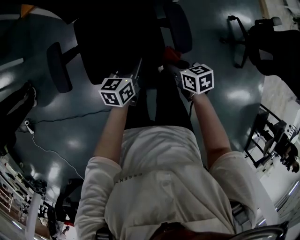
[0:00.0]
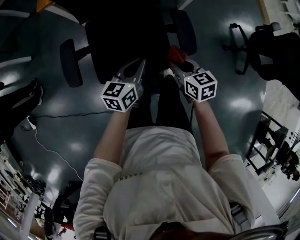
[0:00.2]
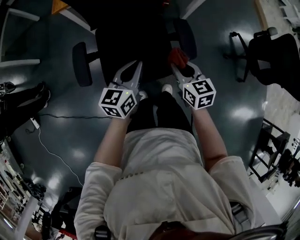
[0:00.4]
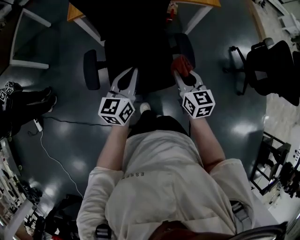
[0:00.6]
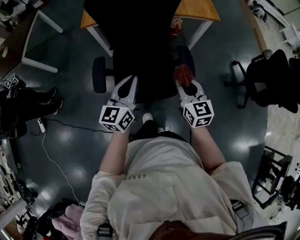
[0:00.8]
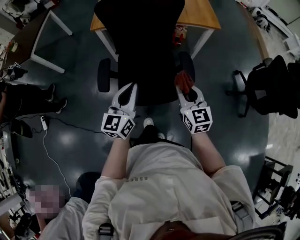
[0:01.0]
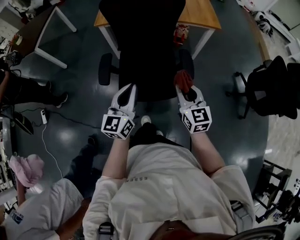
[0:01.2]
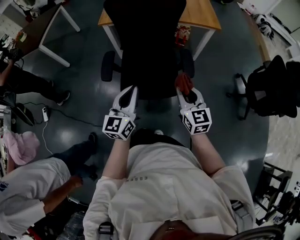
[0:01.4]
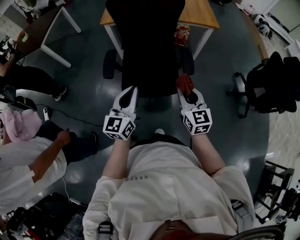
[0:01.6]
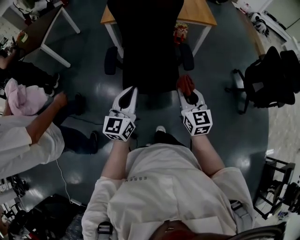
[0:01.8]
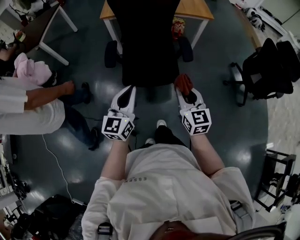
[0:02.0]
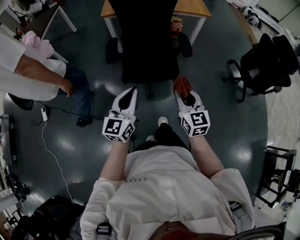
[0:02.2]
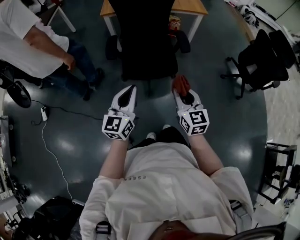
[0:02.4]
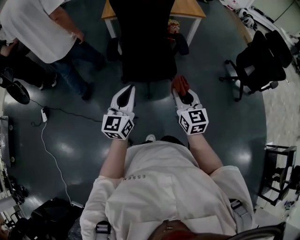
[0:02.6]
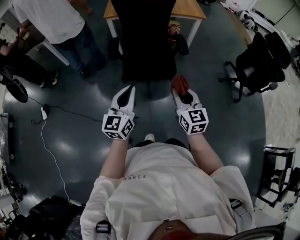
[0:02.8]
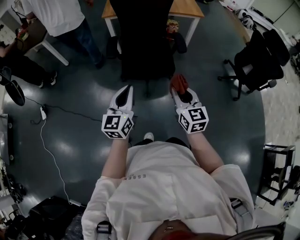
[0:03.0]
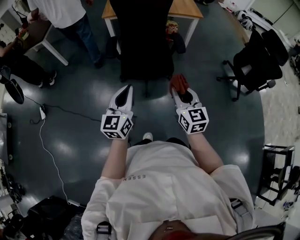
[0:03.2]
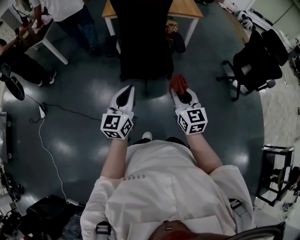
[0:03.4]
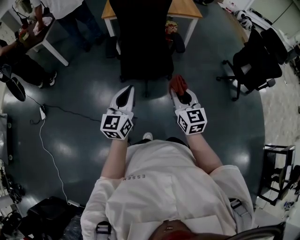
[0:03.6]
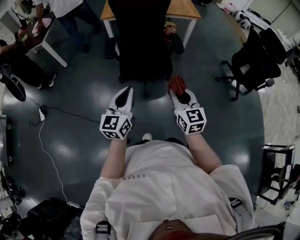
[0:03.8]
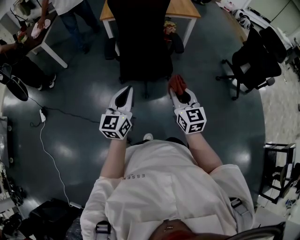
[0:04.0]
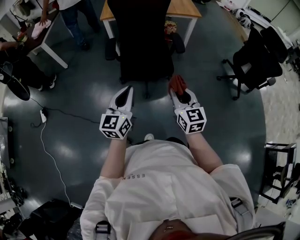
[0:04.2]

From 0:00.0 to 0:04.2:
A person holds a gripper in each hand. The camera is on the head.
From 0:00.0 to 0:01.4: The left gripper shifts roughly 35 cm upward, backward and to the left, and rotates about 40 degrees; the right gripper travels upward by some 25 cm, and tilts its fingers roughly 30 degrees upward.
From 0:01.4 to 0:02.8: Both grippers travel together backward, about 25 cm.
From 0:02.8 to 0:04.2: There are only small adjustments of the grippers.

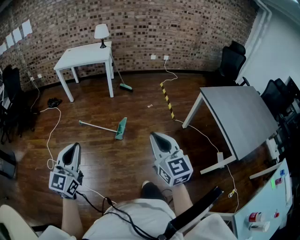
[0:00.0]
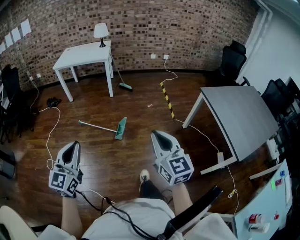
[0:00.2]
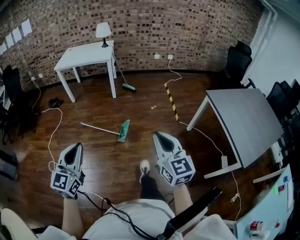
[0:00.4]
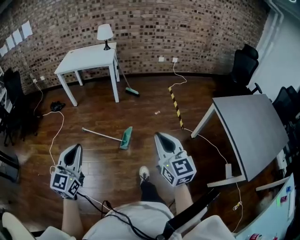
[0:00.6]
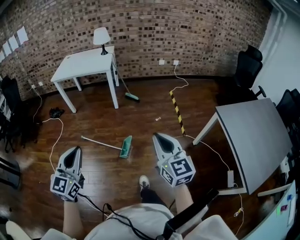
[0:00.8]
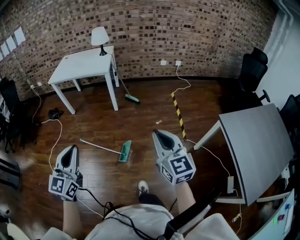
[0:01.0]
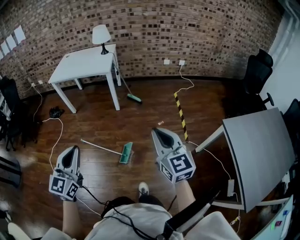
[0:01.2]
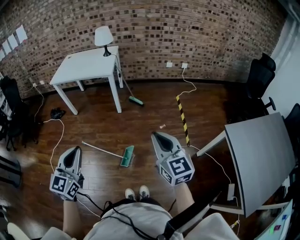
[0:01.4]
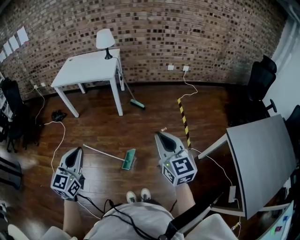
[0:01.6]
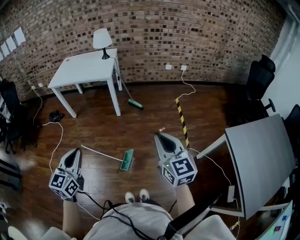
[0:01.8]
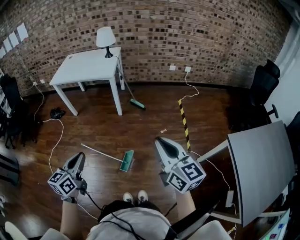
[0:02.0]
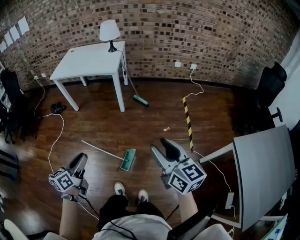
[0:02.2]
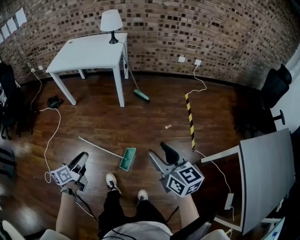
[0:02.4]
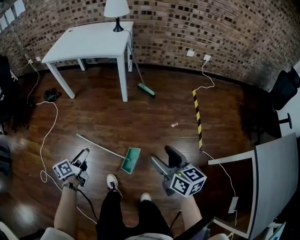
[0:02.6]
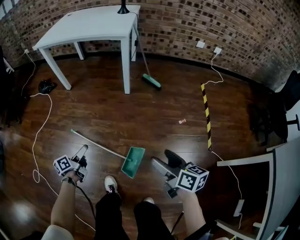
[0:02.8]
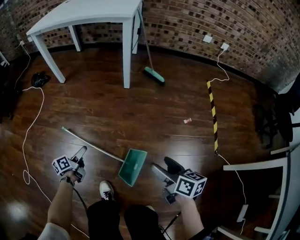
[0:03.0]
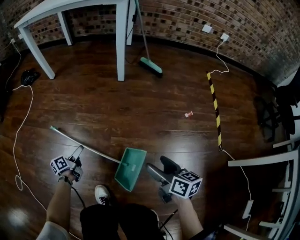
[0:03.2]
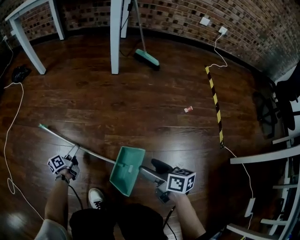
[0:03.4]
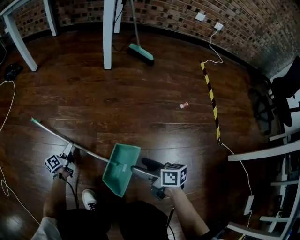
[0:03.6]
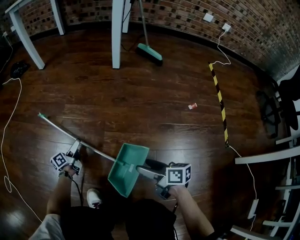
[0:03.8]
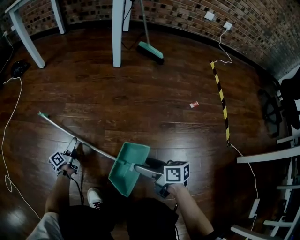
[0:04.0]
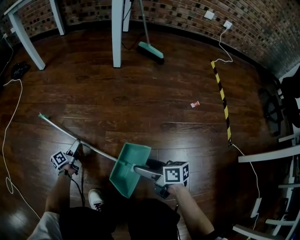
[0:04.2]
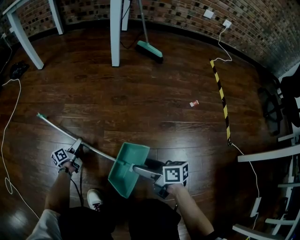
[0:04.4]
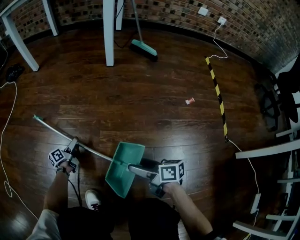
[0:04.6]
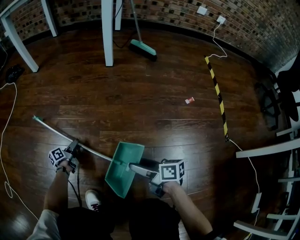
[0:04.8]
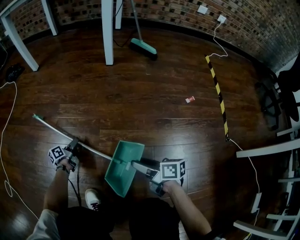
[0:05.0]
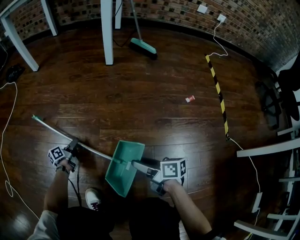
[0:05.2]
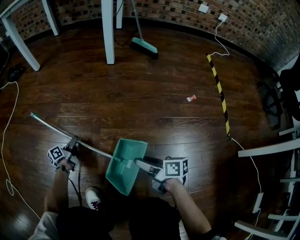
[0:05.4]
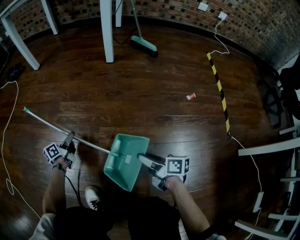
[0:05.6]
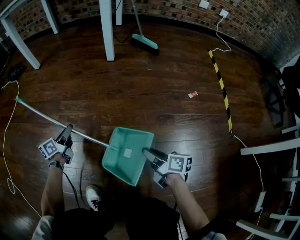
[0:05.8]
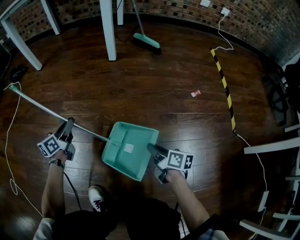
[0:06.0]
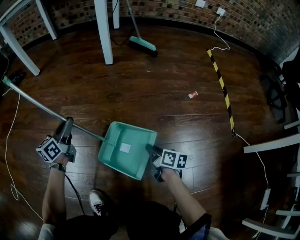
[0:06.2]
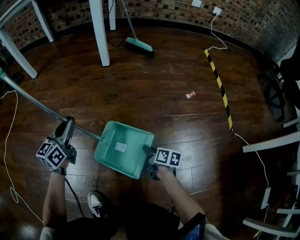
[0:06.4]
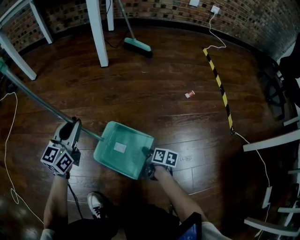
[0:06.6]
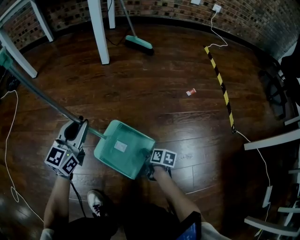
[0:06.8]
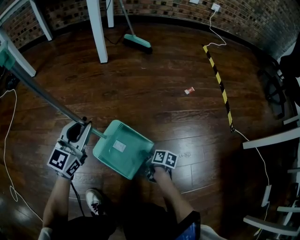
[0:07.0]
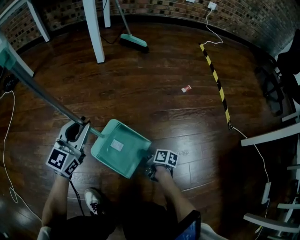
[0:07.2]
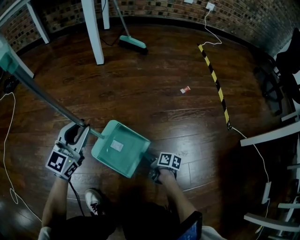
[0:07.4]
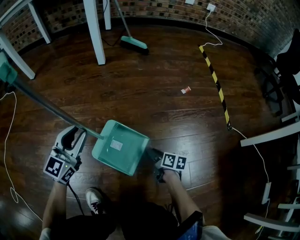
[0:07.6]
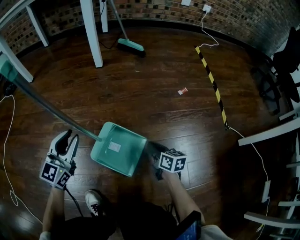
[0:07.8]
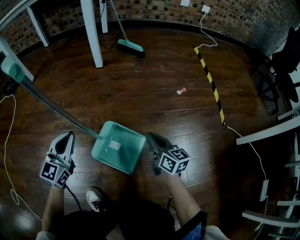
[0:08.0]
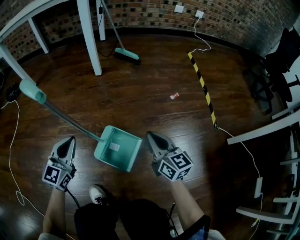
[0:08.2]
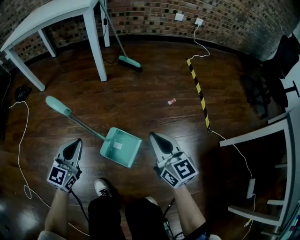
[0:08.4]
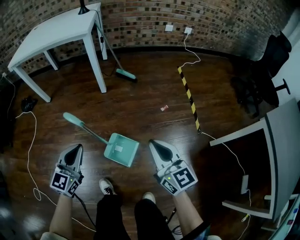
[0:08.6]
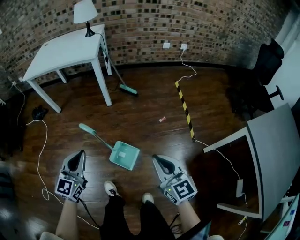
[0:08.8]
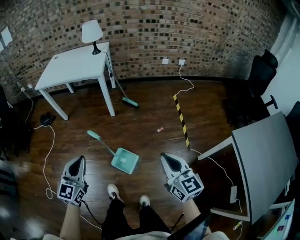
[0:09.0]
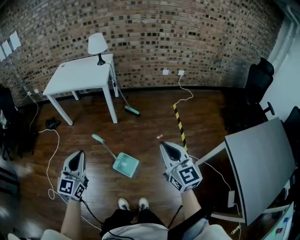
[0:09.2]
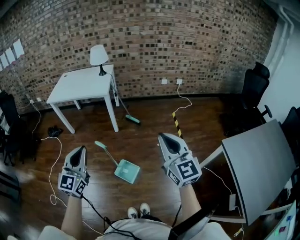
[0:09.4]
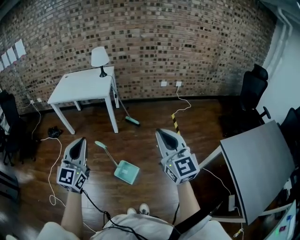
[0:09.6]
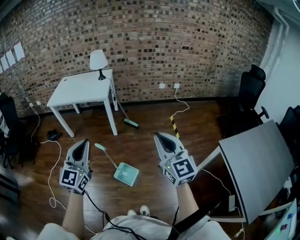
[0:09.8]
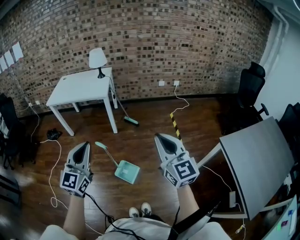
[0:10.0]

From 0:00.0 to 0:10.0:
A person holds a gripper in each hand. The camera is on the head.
From 0:00.0 to 0:01.4: The two grippers travel together, forward, some 40 cm.
From 0:01.4 to 0:02.8: The grippers both shift downward and forward by roughly 60 cm. The right gripper twists about 40 degrees clockwise, seen from behind, and opens its fingers; the left gripper twists some 70 degrees counterclockwise, seen from behind, and opens up.
From 0:02.8 to 0:04.2: The grippers both shift downward by about 50 cm. The right gripper changes its angle by about 20 degrees.
From 0:04.2 to 0:05.8: The left gripper shifts roughly 10 cm upward and to the right, and closes its fingers. Meanwhile the right gripper goes about 5 cm to the right, and closes its fingers.
From 0:05.8 to 0:07.2: The right gripper heads downward, covering roughly 20 cm, and turns by roughly 30 degrees; the left gripper heads to the right and upward, covering some 25 cm, and rotates around the line of its fingers by about 60 degrees, clockwise from behind.
From 0:07.2 to 0:08.6: The left gripper moves upward, approximately 35 cm, while the right gripper shifts about 70 cm upward, and rotates around the line of its fingers by roughly 60 degrees, counterclockwise from behind.
From 0:08.6 to 0:10.0: The two grippers go some 50 cm upward. The left gripper changes its angle by about 20 degrees.

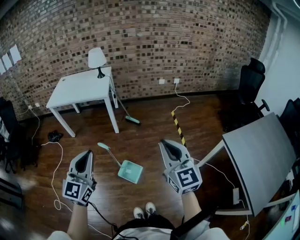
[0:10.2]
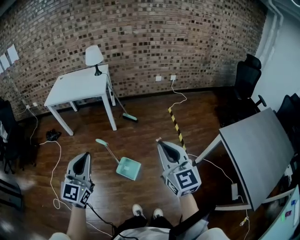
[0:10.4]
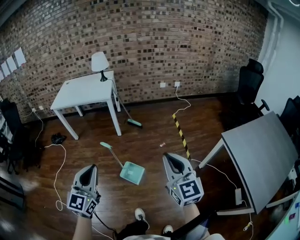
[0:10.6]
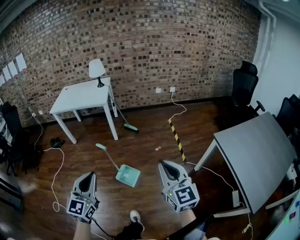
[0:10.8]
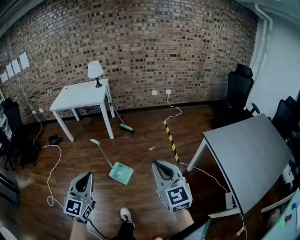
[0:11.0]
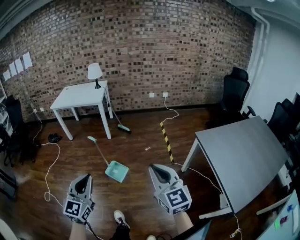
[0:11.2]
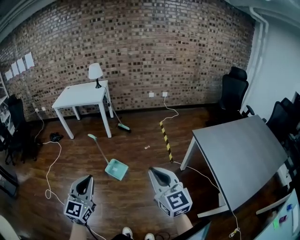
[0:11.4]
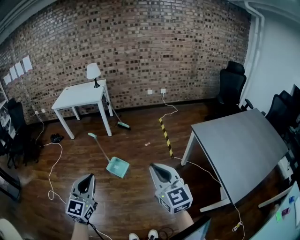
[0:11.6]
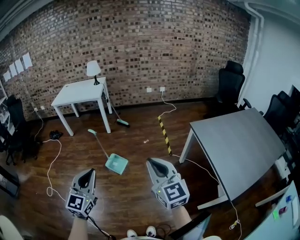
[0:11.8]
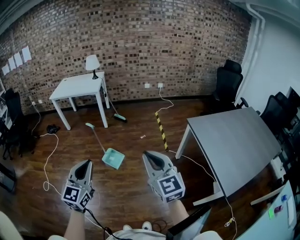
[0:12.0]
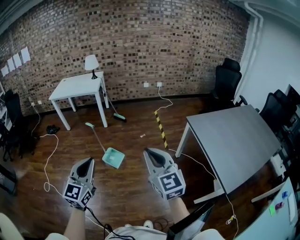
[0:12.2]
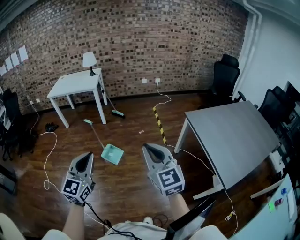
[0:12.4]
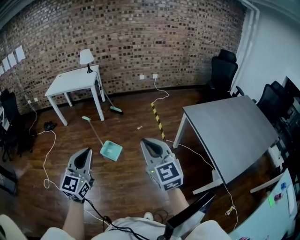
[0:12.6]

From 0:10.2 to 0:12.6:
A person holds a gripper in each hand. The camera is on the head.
From 0:10.2 to 0:11.4: Both grippers travel together backward and to the right, some 35 cm.
From 0:11.4 to 0:12.6: The grippers make only small movements.

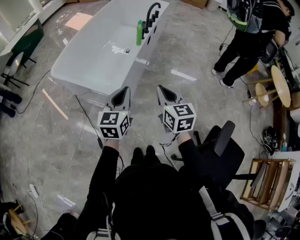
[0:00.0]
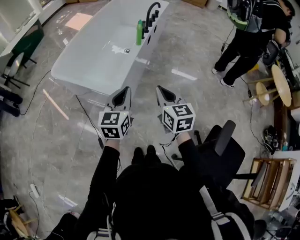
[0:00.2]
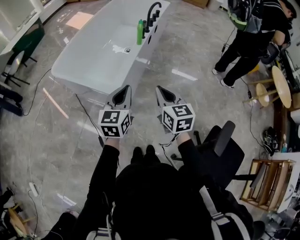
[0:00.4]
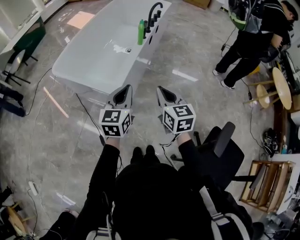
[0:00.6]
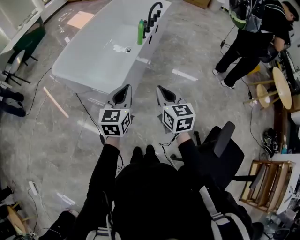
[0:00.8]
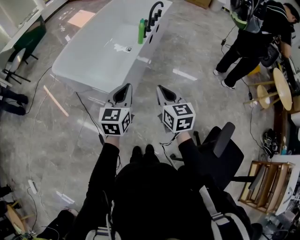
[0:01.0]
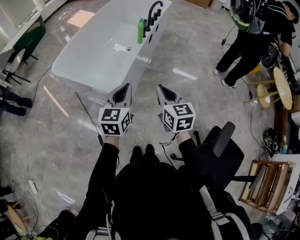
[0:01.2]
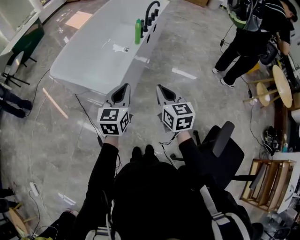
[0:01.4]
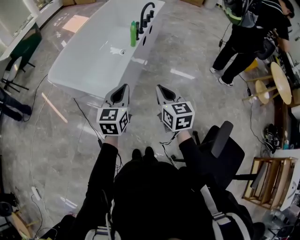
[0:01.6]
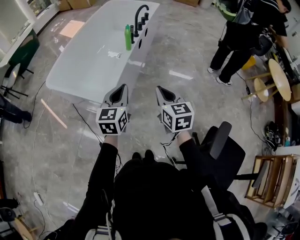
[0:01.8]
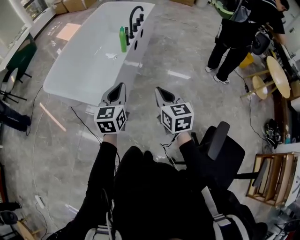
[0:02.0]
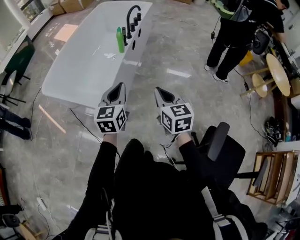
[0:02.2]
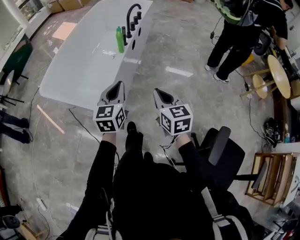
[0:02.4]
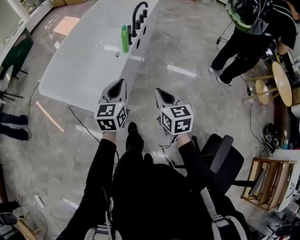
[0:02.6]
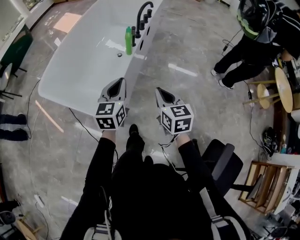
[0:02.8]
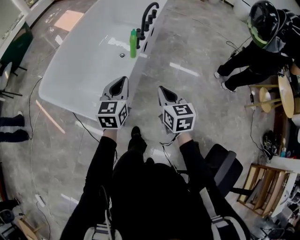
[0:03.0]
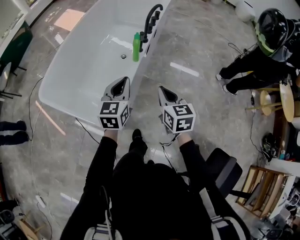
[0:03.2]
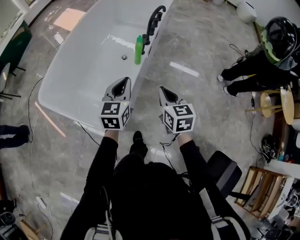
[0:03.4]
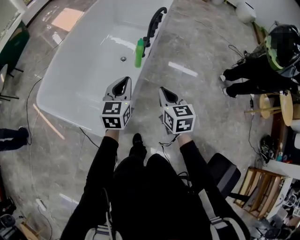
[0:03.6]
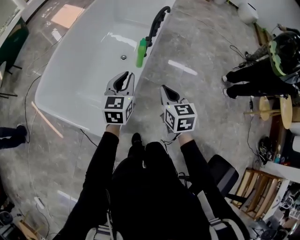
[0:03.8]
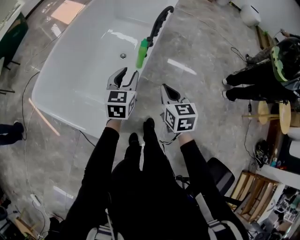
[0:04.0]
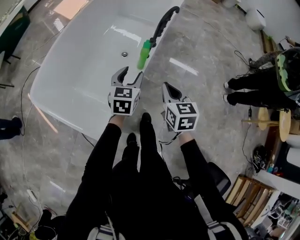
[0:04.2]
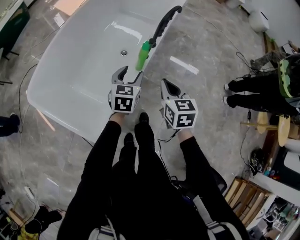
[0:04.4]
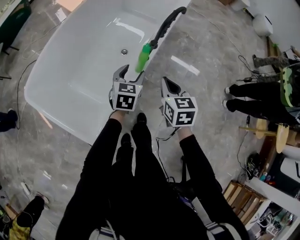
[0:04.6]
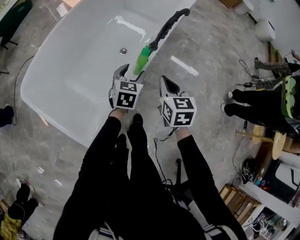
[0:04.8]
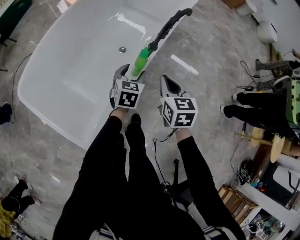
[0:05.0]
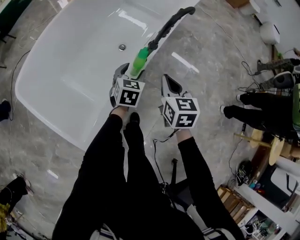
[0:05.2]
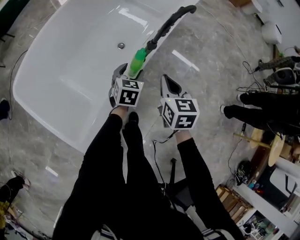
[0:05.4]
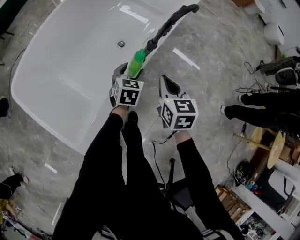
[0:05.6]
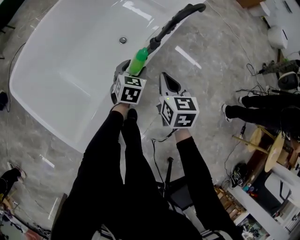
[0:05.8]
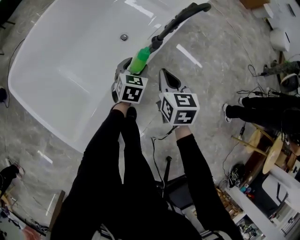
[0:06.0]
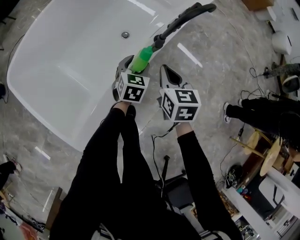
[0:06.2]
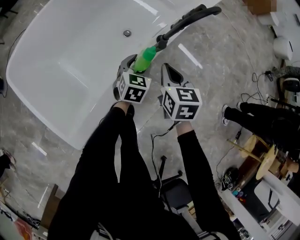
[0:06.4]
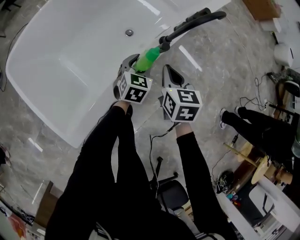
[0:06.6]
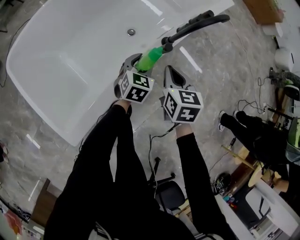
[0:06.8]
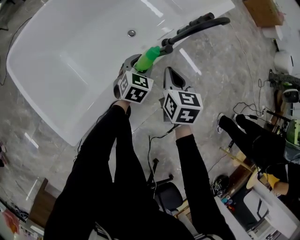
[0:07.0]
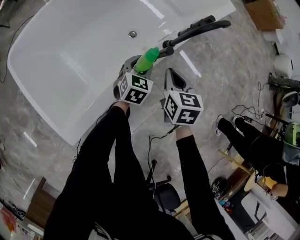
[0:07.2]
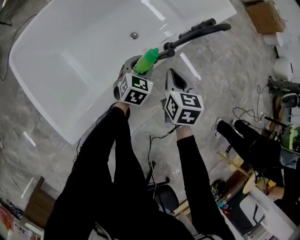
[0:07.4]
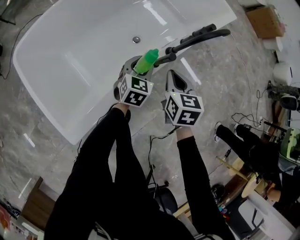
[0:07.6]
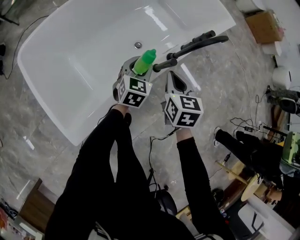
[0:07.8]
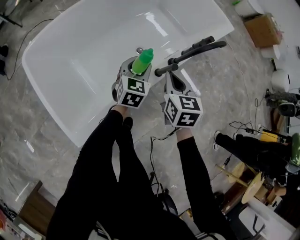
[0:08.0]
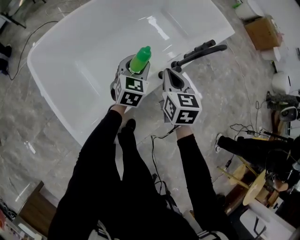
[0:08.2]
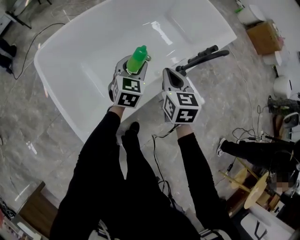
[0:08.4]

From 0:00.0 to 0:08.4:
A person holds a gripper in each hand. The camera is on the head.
From 0:00.0 to 0:01.4: The grippers make only small movements.
From 0:01.4 to 0:02.8: Both grippers move forward, some 15 cm.
From 0:02.8 to 0:04.2: Both grippers move forward, roughly 25 cm. The left gripper opens.
From 0:04.2 to 0:05.6: The left gripper travels downward and forward by roughly 20 cm. The right gripper shifts about 15 cm forward and downward.
From 0:05.6 to 0:07.0: The right gripper shifts by approximately 5 cm.
From 0:07.0 to 0:08.4: The two grippers go roughly 20 cm to the left and upward.
